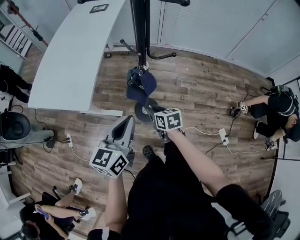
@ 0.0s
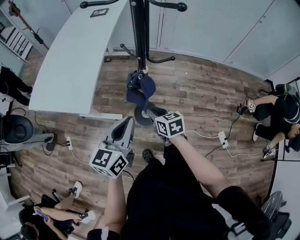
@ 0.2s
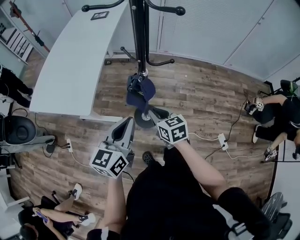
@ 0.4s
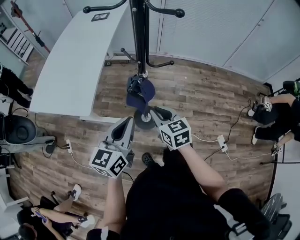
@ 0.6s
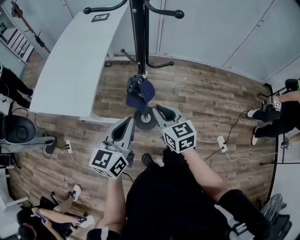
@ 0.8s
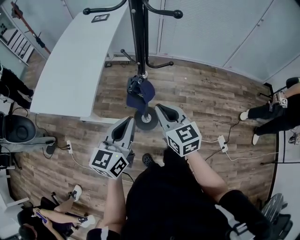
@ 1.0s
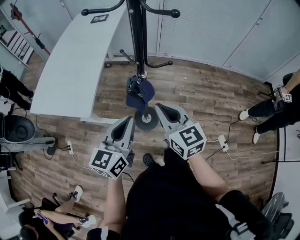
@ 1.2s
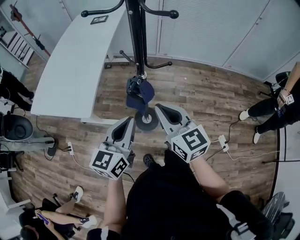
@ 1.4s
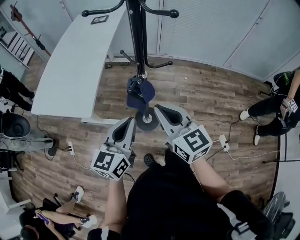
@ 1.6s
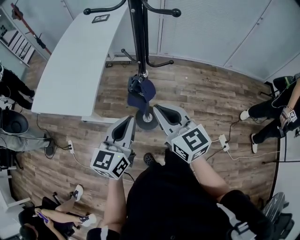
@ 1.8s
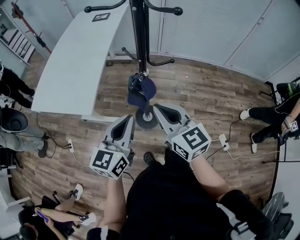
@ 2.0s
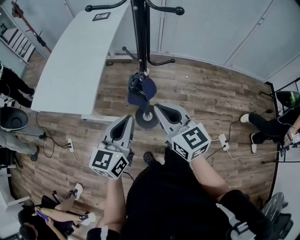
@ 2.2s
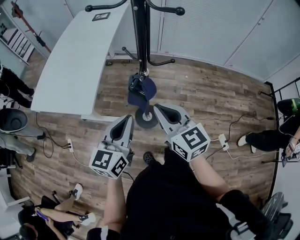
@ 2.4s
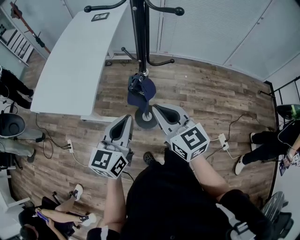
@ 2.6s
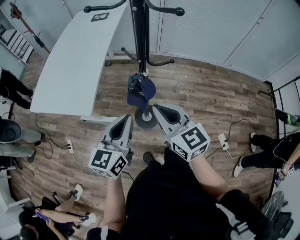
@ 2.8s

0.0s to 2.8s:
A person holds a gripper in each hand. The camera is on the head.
0.0s to 1.4s: The right gripper moves upward, some 25 cm, and turns by about 40 degrees.
1.4s to 2.8s: There are only small adjustments of the grippers.

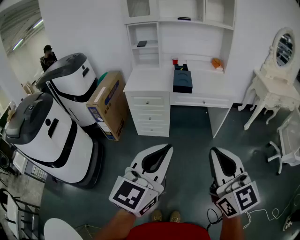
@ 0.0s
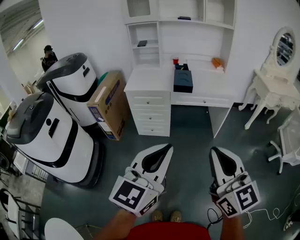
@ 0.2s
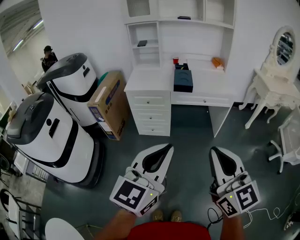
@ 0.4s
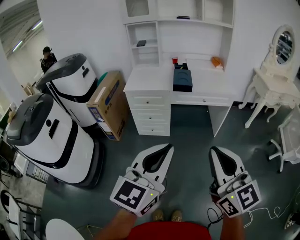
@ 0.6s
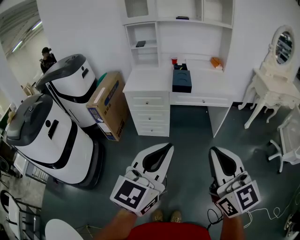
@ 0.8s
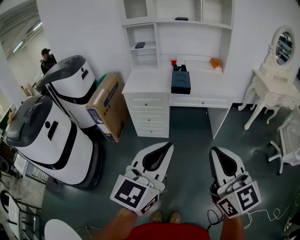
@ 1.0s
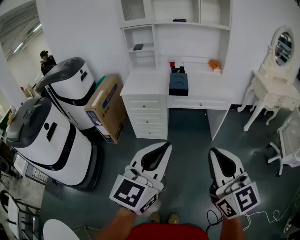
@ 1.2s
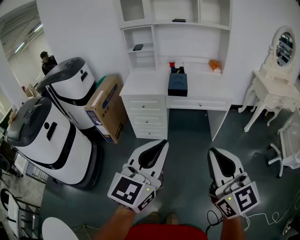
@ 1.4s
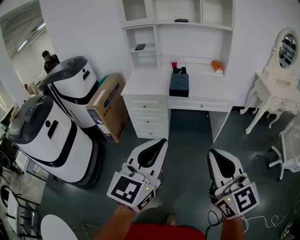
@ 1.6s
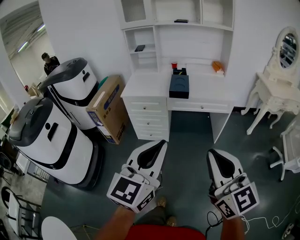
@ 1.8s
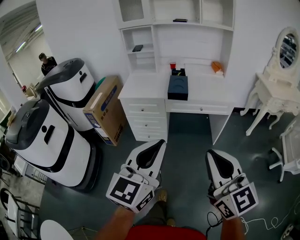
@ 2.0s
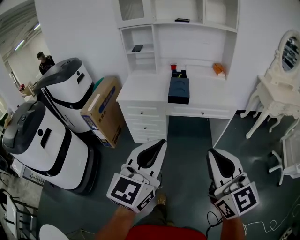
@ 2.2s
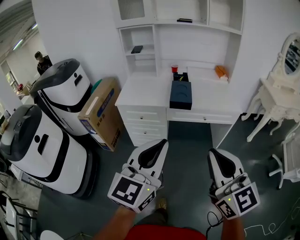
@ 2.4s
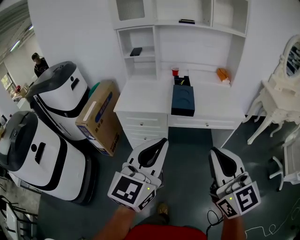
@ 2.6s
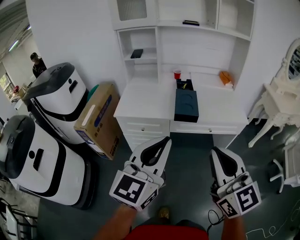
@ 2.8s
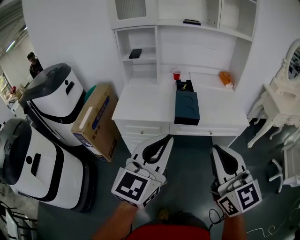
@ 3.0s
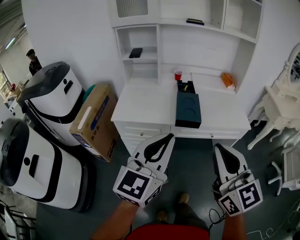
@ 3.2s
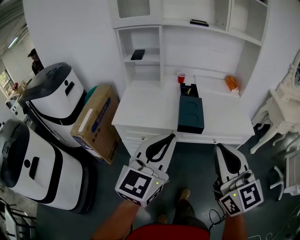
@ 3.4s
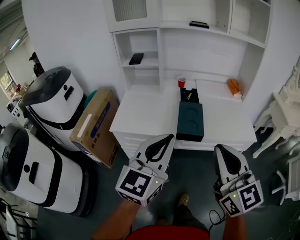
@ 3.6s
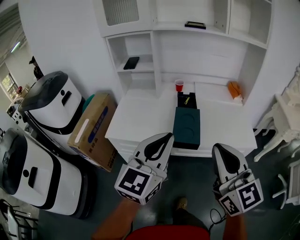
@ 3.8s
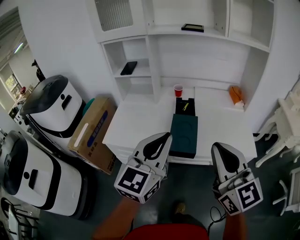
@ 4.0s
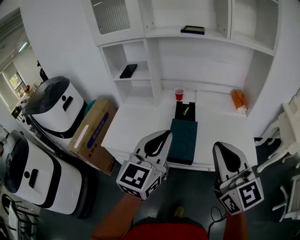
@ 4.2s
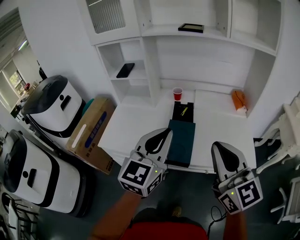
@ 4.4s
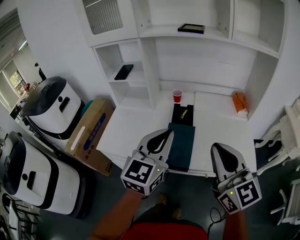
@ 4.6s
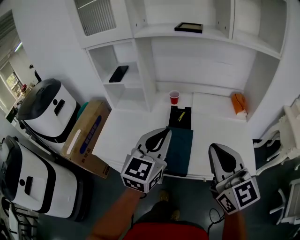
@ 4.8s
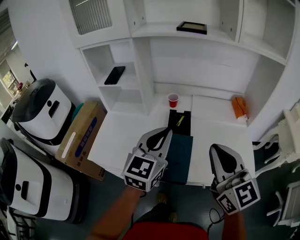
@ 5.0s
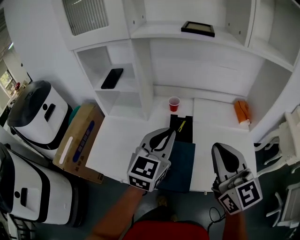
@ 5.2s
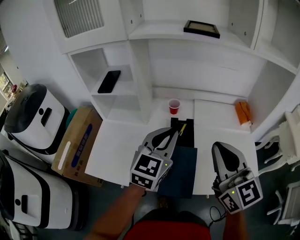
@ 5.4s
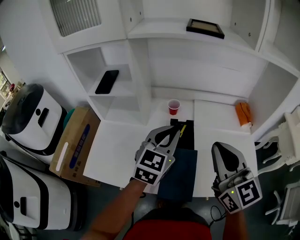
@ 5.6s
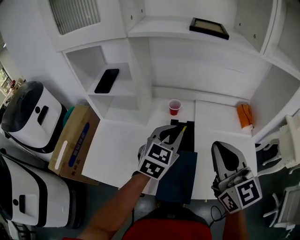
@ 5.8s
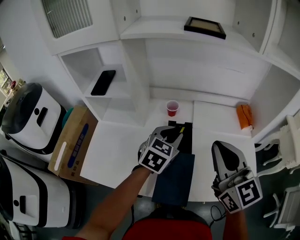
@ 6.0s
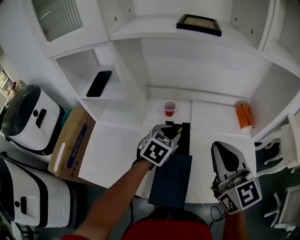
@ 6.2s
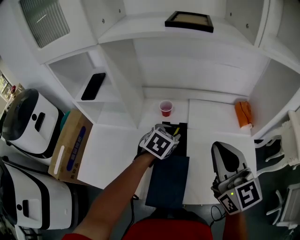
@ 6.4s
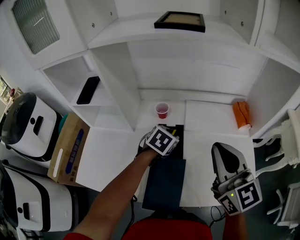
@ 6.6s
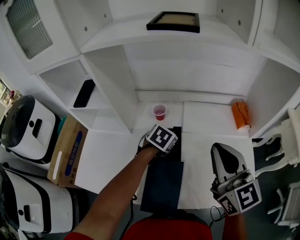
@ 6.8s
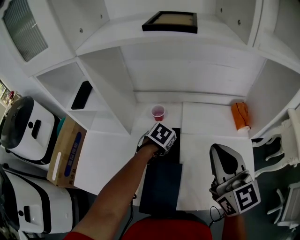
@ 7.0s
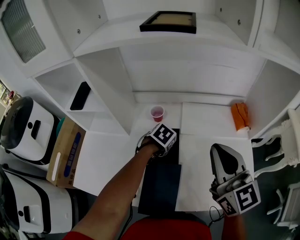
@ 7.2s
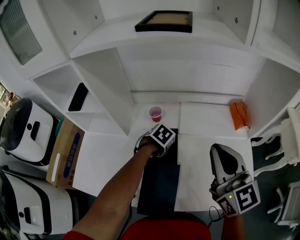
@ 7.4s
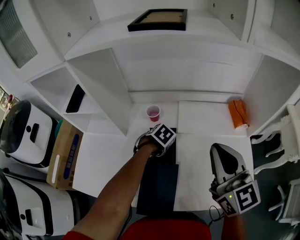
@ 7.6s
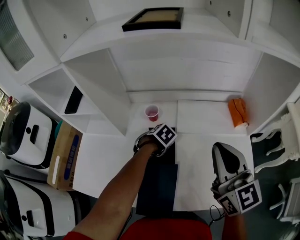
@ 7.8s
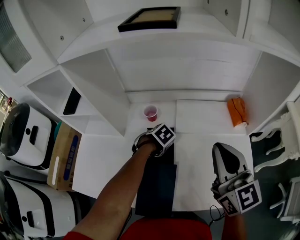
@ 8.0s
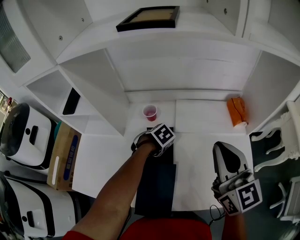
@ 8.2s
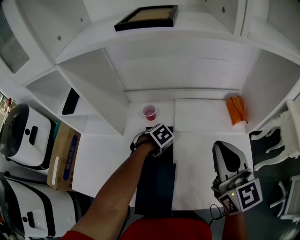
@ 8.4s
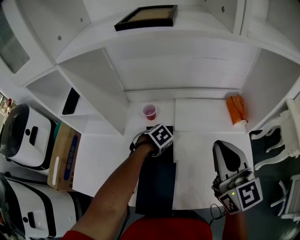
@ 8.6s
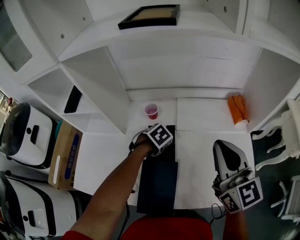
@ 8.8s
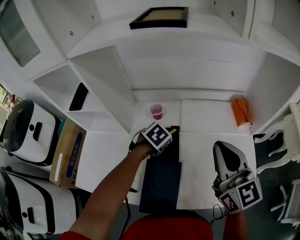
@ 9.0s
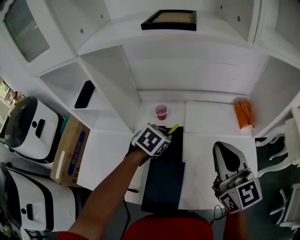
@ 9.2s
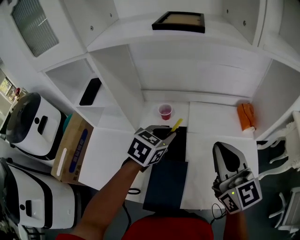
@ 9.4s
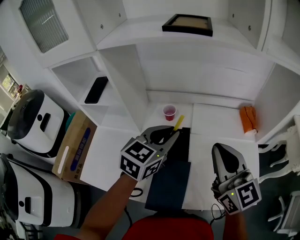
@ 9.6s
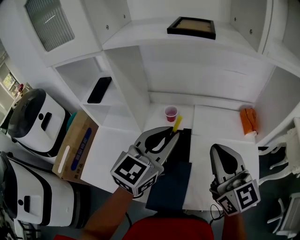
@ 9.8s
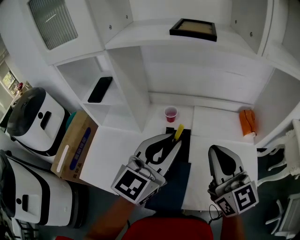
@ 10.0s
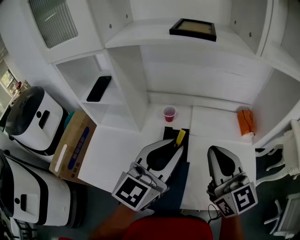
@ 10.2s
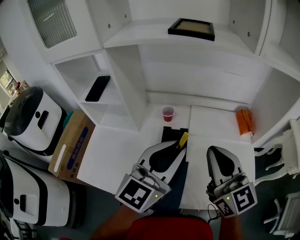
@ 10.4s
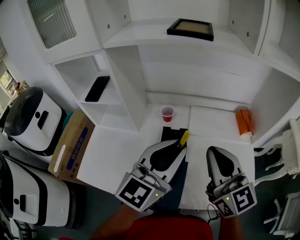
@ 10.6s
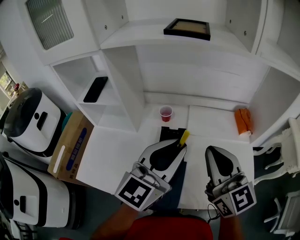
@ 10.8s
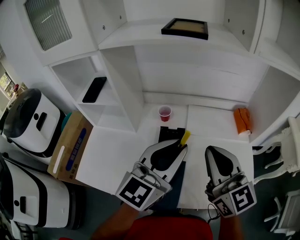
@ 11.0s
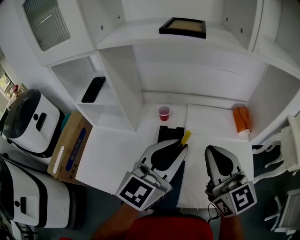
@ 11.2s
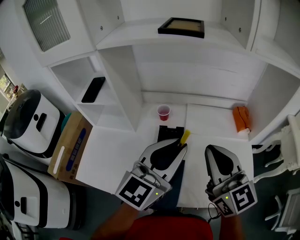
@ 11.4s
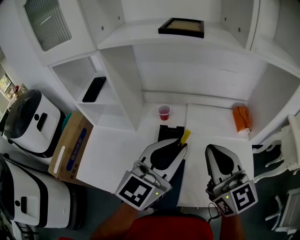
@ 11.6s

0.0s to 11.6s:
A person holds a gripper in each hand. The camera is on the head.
0.0s to 1.4s: The left gripper moves about 5 cm.
1.4s to 2.8s: The grippers both shift forward by about 25 cm.
2.8s to 4.4s: The grippers both shift forward by some 30 cm.
4.4s to 5.8s: The left gripper moves forward and downward, roughly 30 cm, and rotates roughly 20 degrees, while the right gripper goes some 20 cm forward.
5.8s to 7.2s: The right gripper is displaced to the right and forward by some 10 cm. Meanwhile the left gripper travels downward and forward by approximately 25 cm, points its fingers some 50 degrees further downward, and opens up.
7.2s to 8.8s: The left gripper closes up.
8.8s to 10.2s: The right gripper changes place by approximately 10 cm. Meanwhile the left gripper shifts approximately 30 cm upward, and tips its fingers upward by approximately 80 degrees.
10.2s to 11.6s: The grippers stay close to where they were, moving slightly.

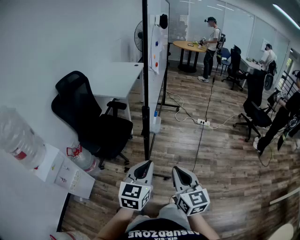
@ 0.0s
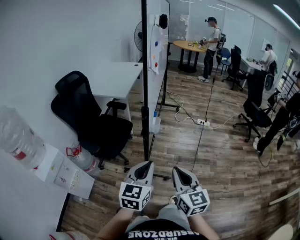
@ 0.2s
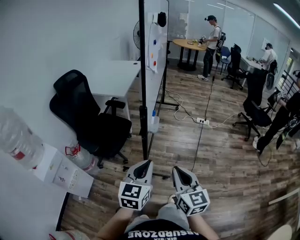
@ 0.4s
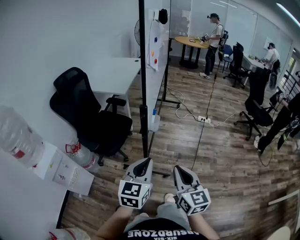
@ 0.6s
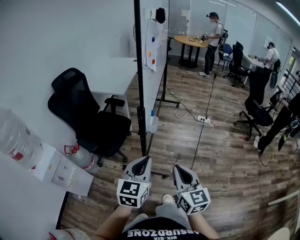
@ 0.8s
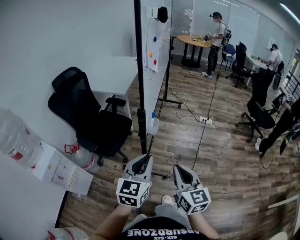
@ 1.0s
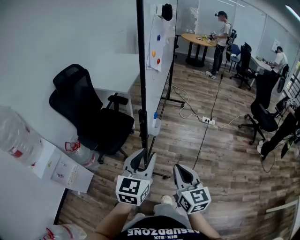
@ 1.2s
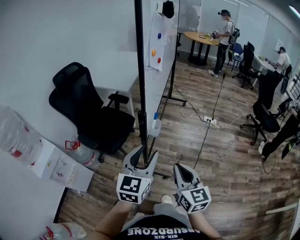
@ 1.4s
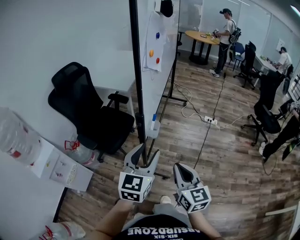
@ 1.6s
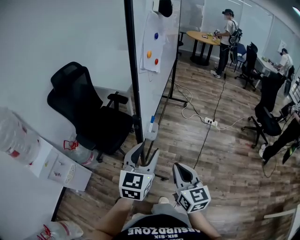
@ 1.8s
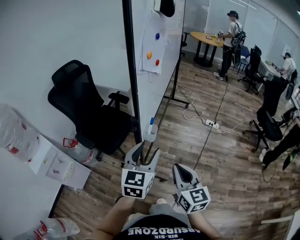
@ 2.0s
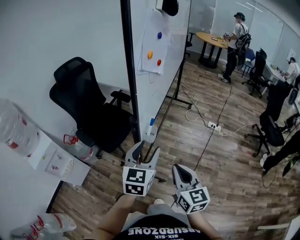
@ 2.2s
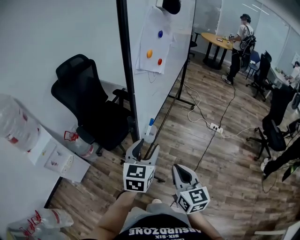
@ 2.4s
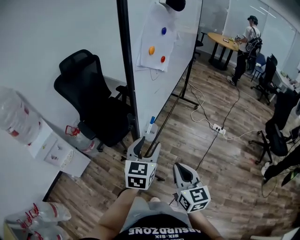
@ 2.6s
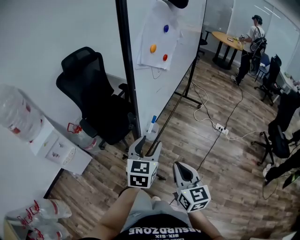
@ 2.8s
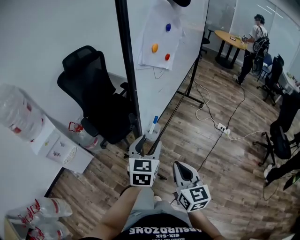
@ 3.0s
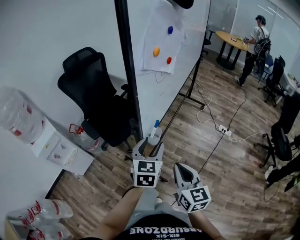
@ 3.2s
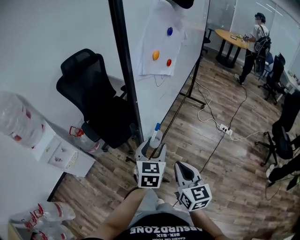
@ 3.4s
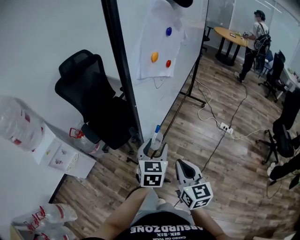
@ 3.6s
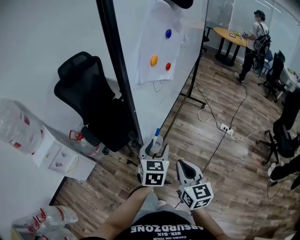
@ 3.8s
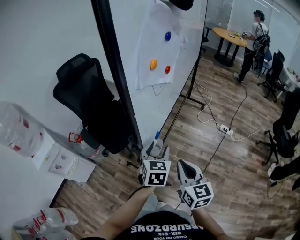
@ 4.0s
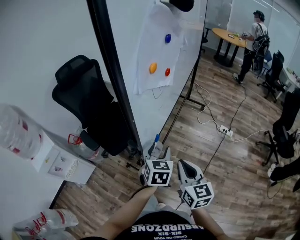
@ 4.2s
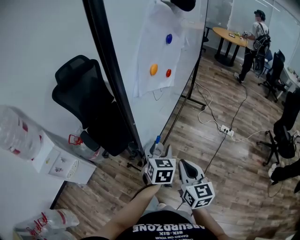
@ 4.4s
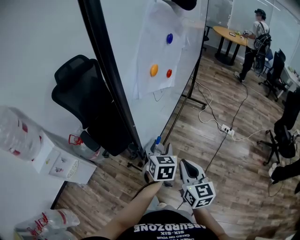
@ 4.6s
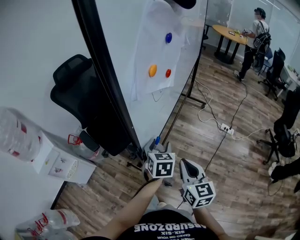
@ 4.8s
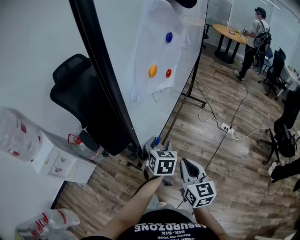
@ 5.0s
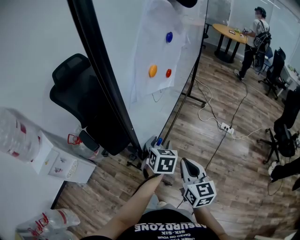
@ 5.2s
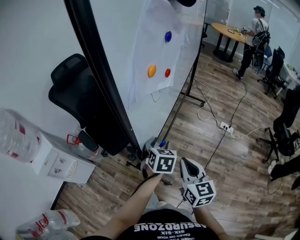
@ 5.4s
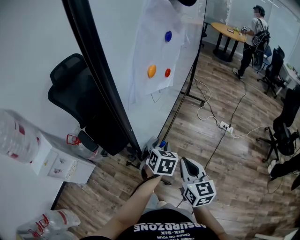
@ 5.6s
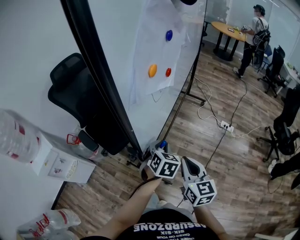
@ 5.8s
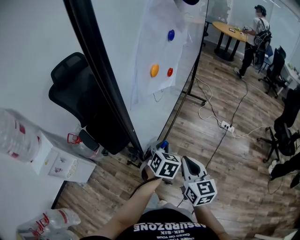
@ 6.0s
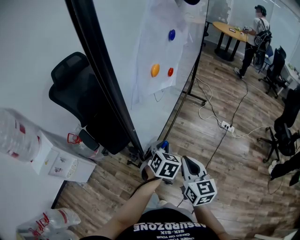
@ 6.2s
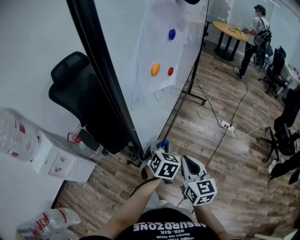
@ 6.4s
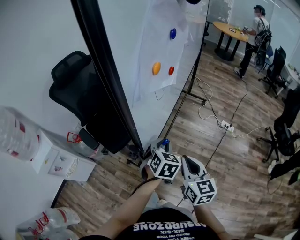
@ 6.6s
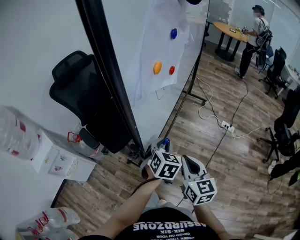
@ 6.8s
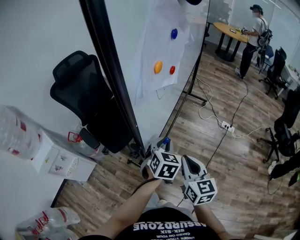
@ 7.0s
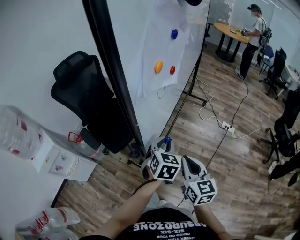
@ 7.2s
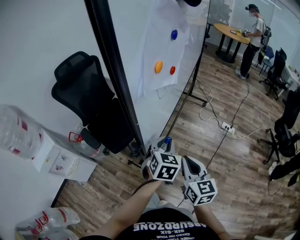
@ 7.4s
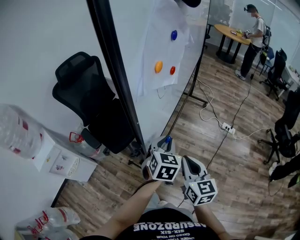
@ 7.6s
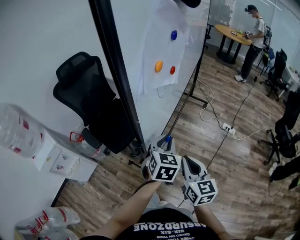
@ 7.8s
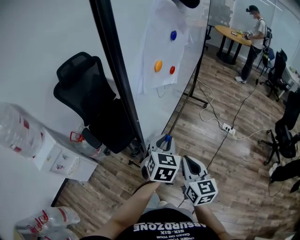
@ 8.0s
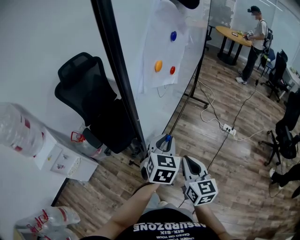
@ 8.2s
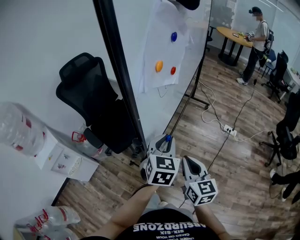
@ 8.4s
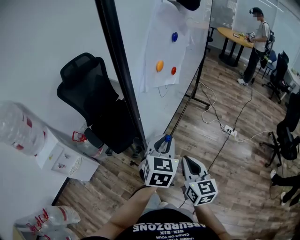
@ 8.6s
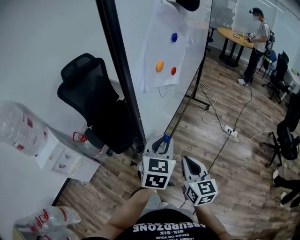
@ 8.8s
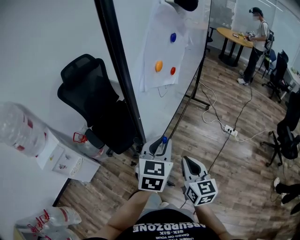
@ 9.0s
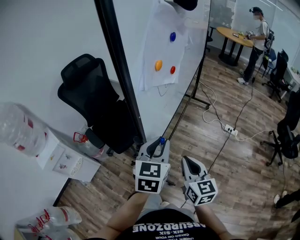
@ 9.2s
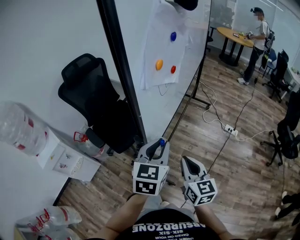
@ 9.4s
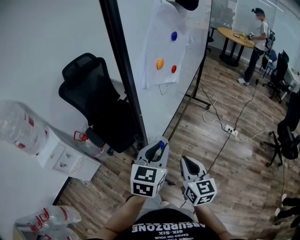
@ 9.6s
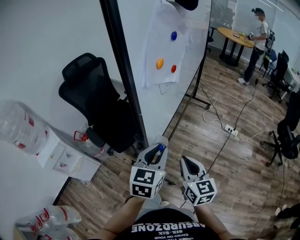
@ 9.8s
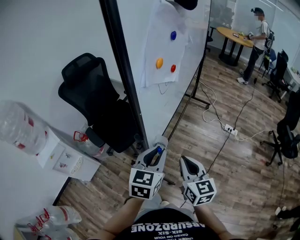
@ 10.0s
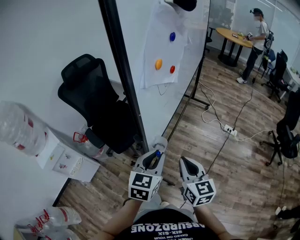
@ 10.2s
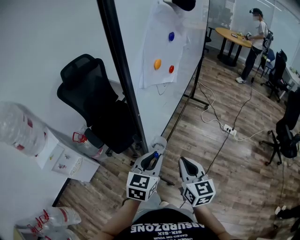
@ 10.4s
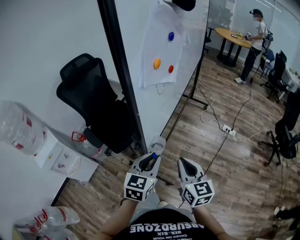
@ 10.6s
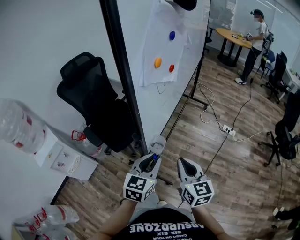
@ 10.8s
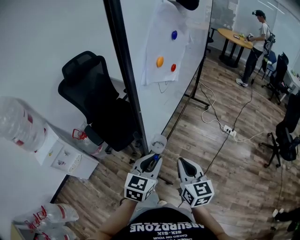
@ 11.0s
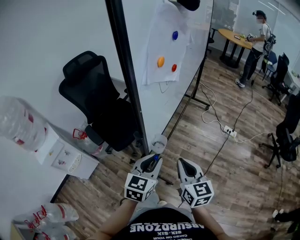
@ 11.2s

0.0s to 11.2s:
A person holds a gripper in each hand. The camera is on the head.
0.0s to 1.6s: The grippers both shift forward by roughly 15 cm. The left gripper opens its fingers.
1.6s to 3.2s: The right gripper is displaced forward and to the right by some 10 cm; the left gripper heads forward, downward and to the right, covering some 15 cm, and turns by approximately 20 degrees.
3.2s to 4.8s: The right gripper moves forward, about 10 cm. The left gripper moves forward and downward, roughly 15 cm.
4.8s to 6.4s: The left gripper closes its fingers.
6.4s to 8.0s: The left gripper is displaced upward by approximately 10 cm.
8.0s to 9.6s: The left gripper is displaced backward and upward by some 10 cm.
9.6s to 11.2s: The left gripper is displaced downward by roughly 5 cm.
